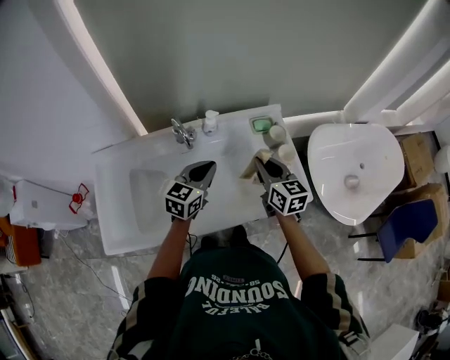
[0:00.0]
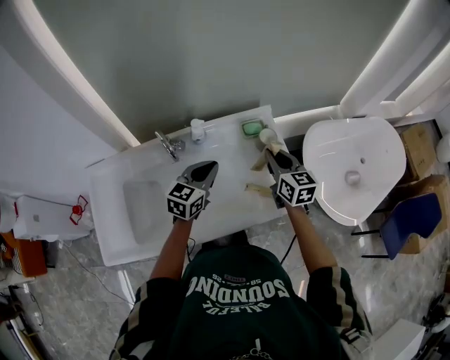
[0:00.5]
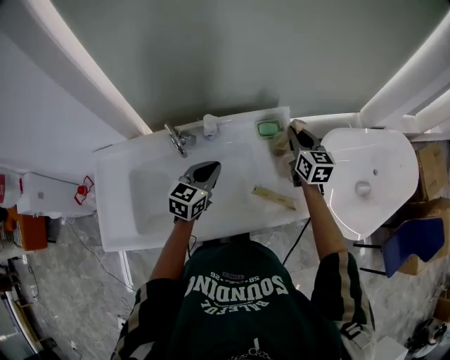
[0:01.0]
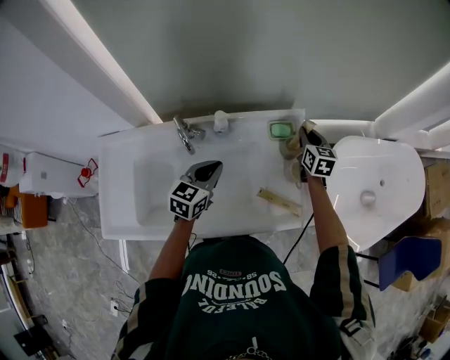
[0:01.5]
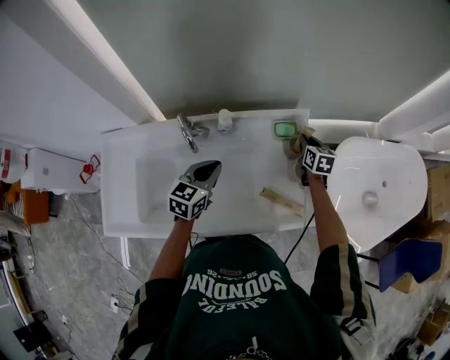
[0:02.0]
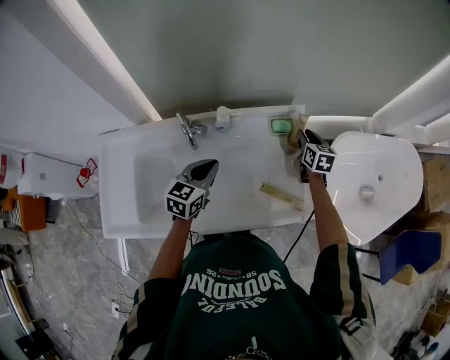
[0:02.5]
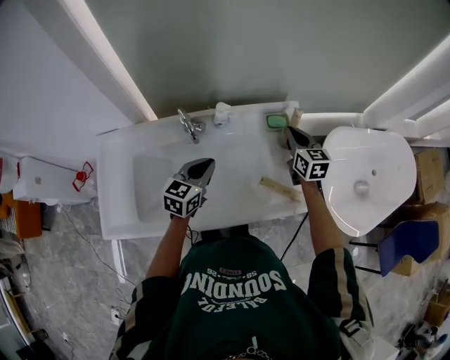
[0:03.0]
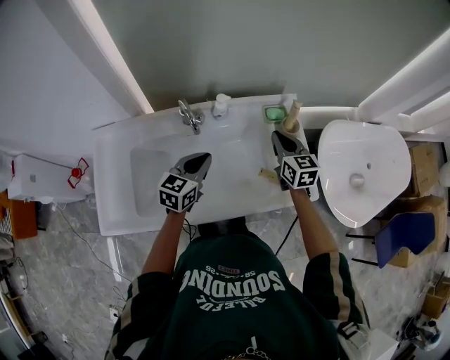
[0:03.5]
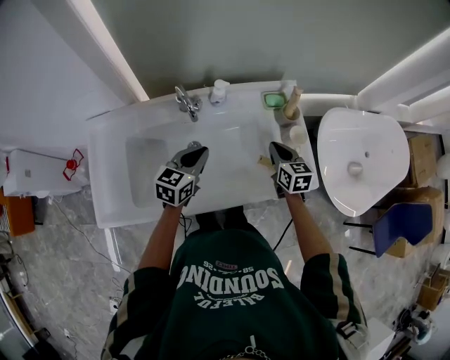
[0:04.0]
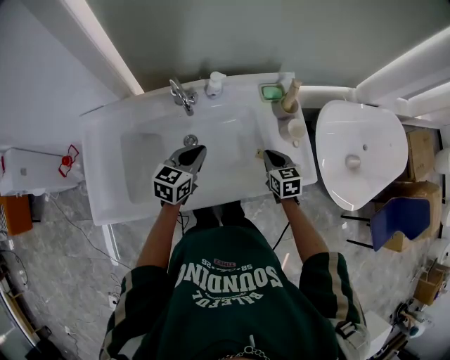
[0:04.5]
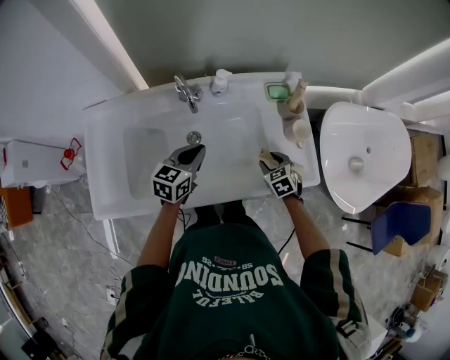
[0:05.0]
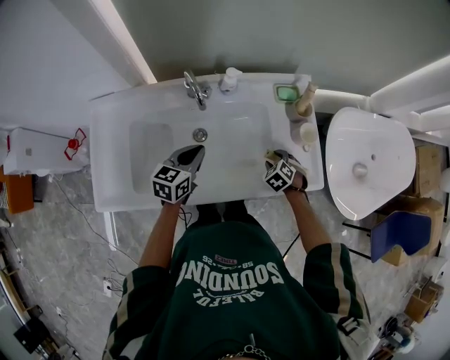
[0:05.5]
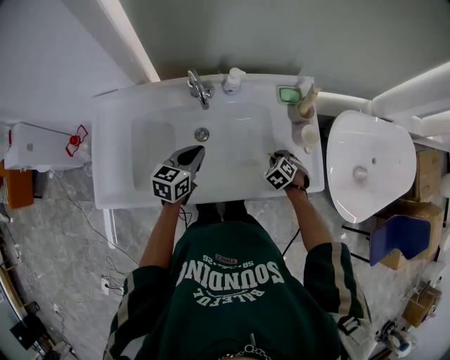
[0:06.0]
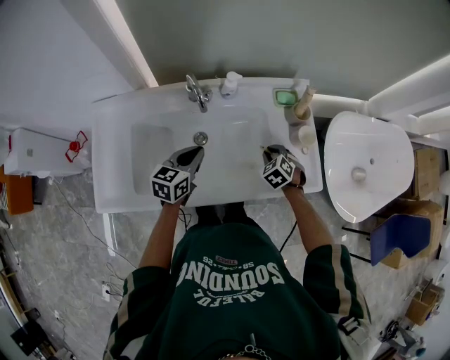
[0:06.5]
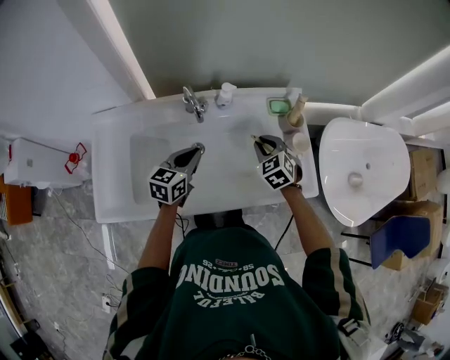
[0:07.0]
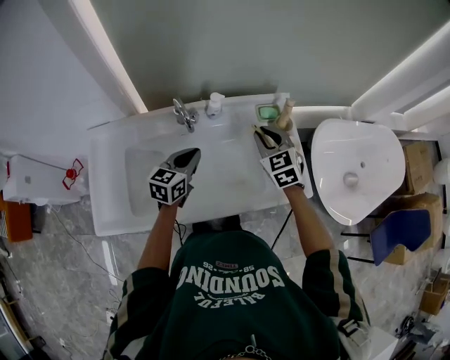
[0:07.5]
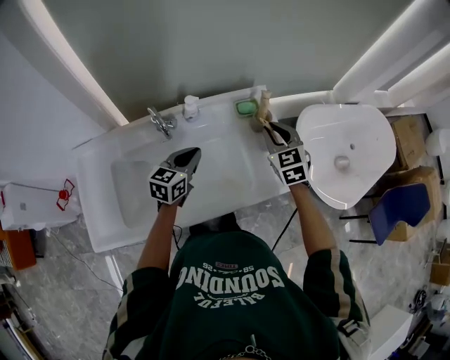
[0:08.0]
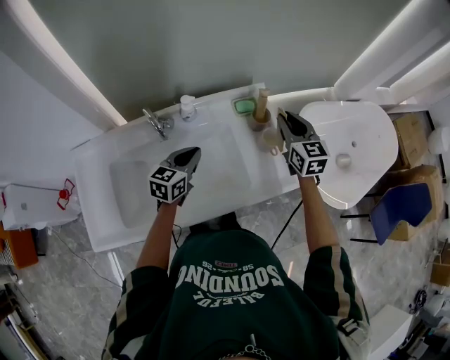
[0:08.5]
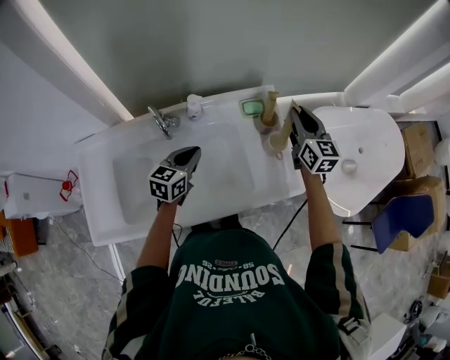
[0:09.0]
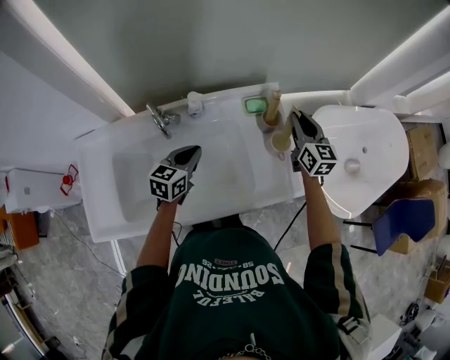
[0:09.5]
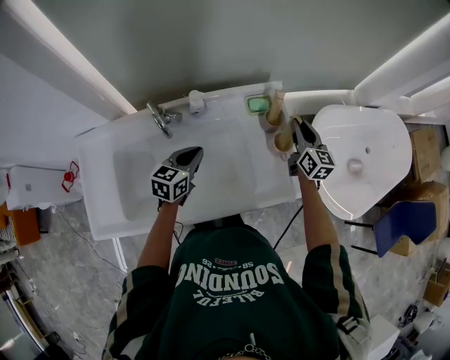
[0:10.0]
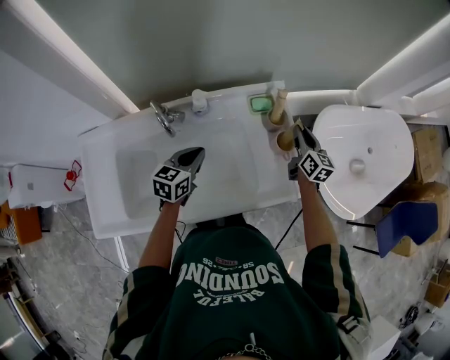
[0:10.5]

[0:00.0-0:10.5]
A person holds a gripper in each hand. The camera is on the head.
0.0 to 2.0 s: The right gripper travels forward, downward and to the right by approximately 30 cm, and turns by about 20 degrees. Meanwhile the left gripper travels forward by about 5 cm.
2.0 to 4.0 s: The left gripper is displaced backward by roughly 5 cm, while the right gripper shifts approximately 20 cm backward and to the left.
4.0 to 6.5 s: The left gripper changes place by about 5 cm. Meanwhile the right gripper is displaced downward by about 10 cm, twists about 40 degrees counterclockwise, seen from behind, and opens, then closes once more.
6.5 to 8.5 s: The left gripper travels to the right and forward by approximately 10 cm; the right gripper is displaced upward and to the right by roughly 30 cm, and tips its fingers upward by some 40 degrees.
8.5 to 10.5 s: The right gripper heads downward, covering roughly 15 cm, and changes its angle by about 30 degrees.

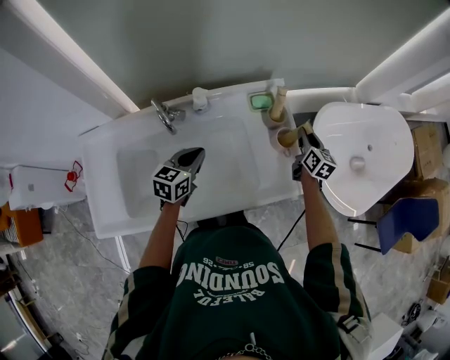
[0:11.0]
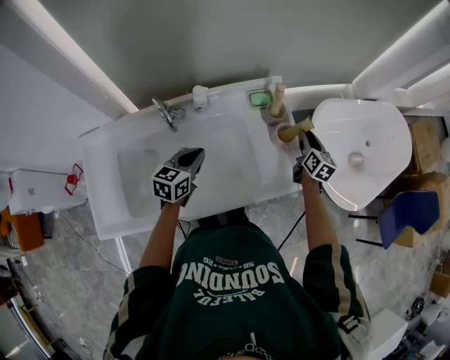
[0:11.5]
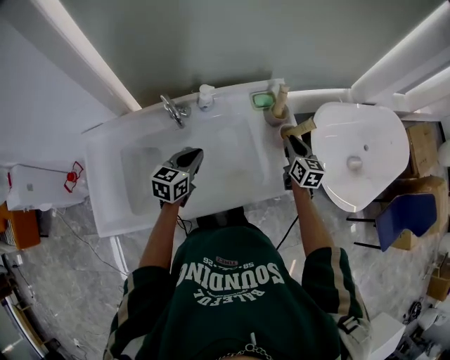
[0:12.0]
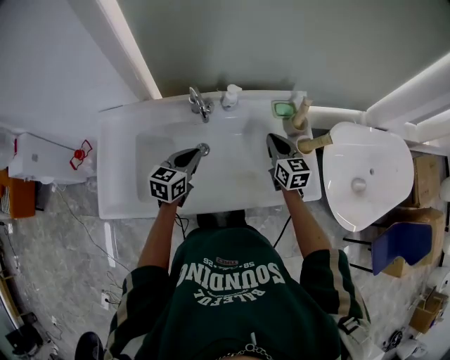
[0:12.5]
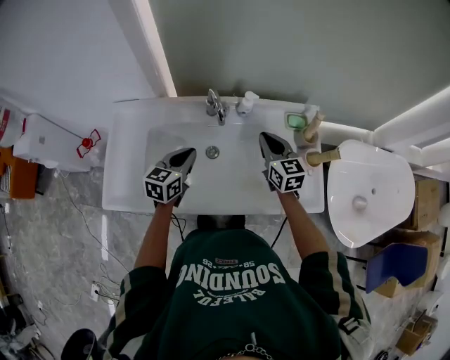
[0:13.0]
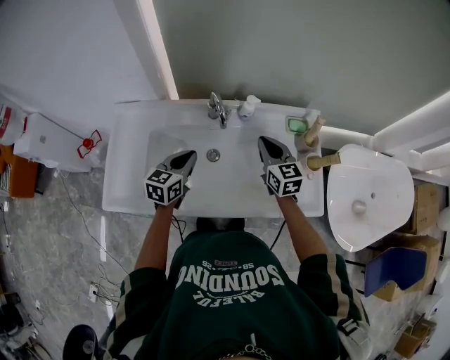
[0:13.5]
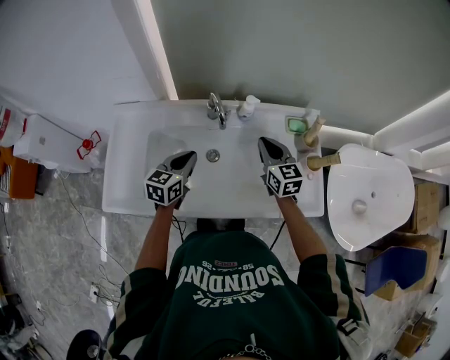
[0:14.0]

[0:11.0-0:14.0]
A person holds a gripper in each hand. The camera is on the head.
11.0 to 12.5 s: The left gripper shifts about 10 cm to the left and backward; the right gripper heads to the left and backward, covering some 25 cm, and rotates approximately 30 degrees.
12.5 to 14.0 s: The grippers both shift to the left by approximately 5 cm.

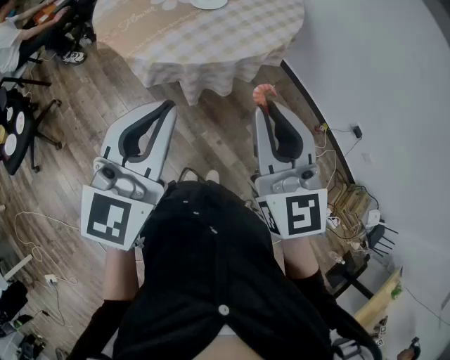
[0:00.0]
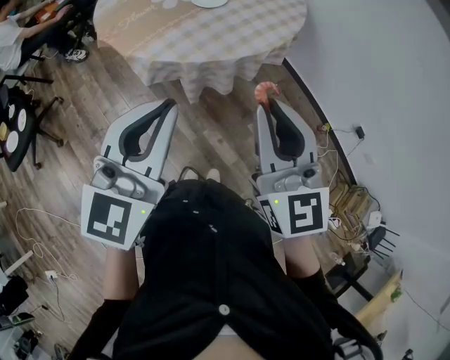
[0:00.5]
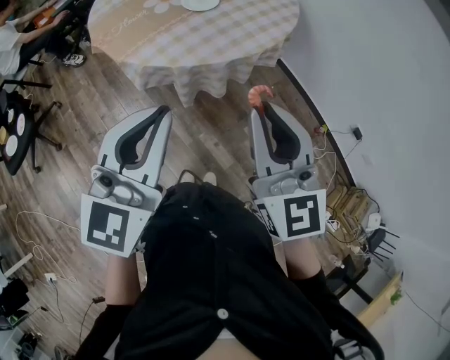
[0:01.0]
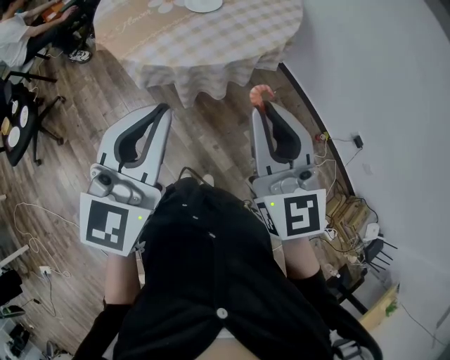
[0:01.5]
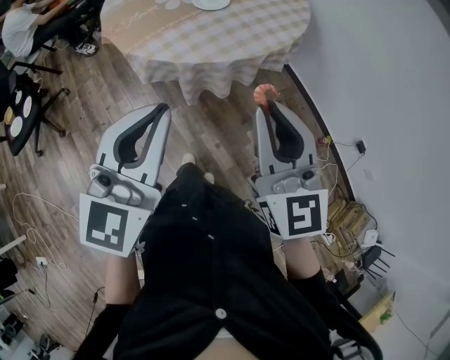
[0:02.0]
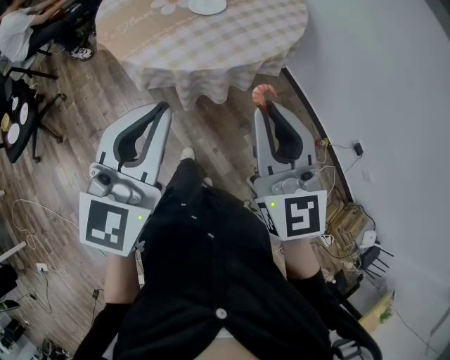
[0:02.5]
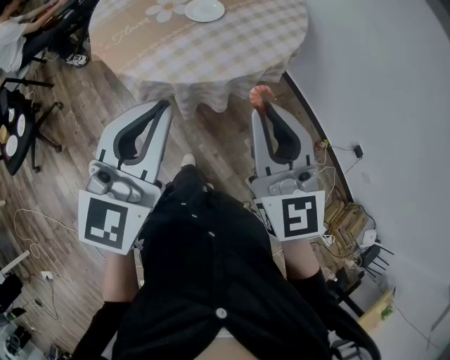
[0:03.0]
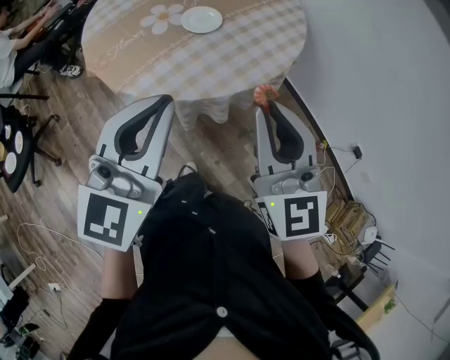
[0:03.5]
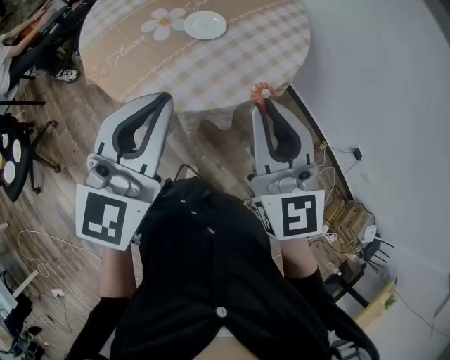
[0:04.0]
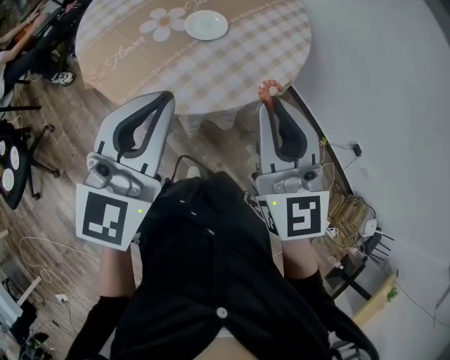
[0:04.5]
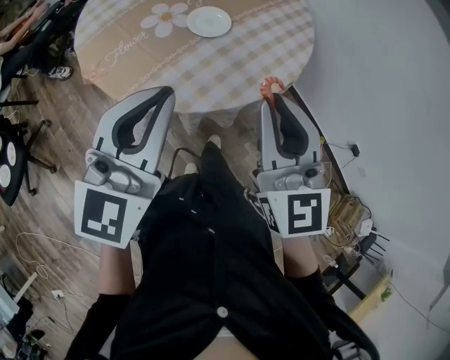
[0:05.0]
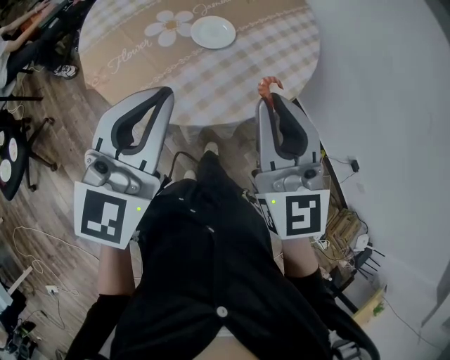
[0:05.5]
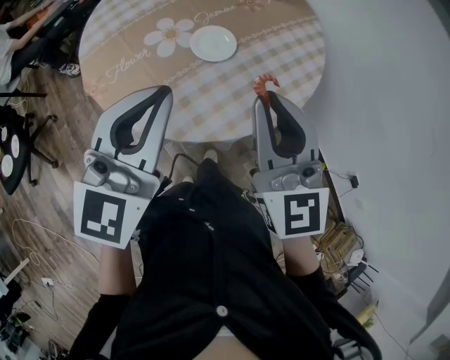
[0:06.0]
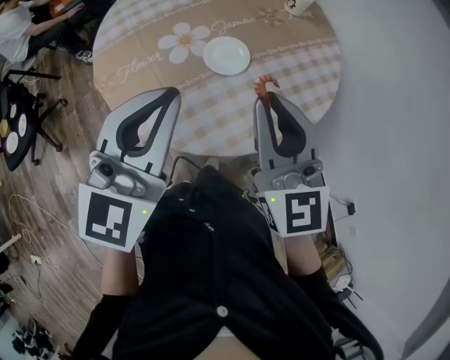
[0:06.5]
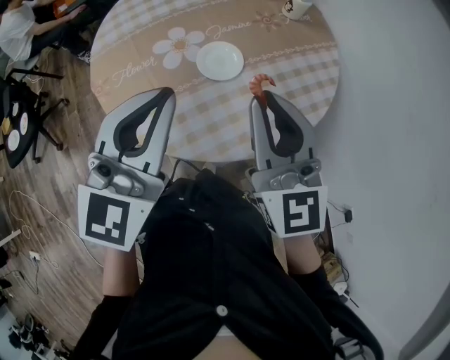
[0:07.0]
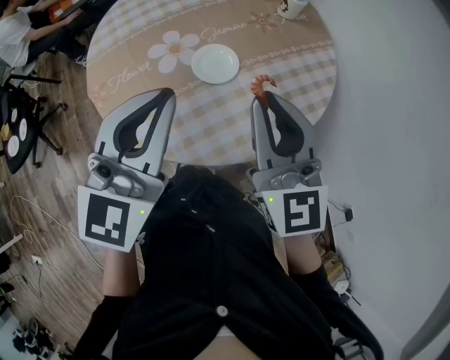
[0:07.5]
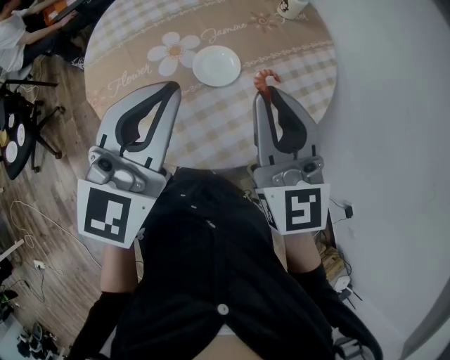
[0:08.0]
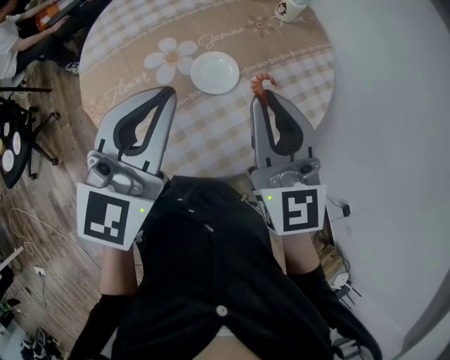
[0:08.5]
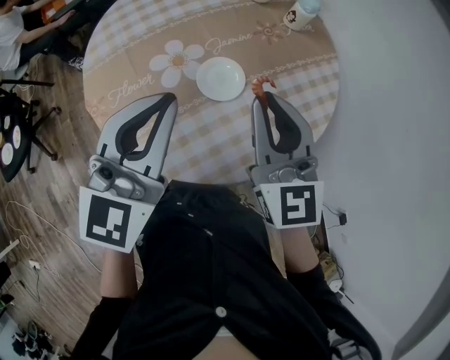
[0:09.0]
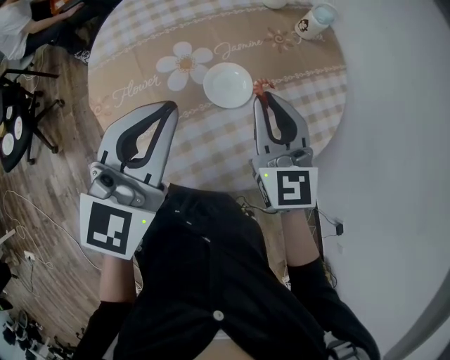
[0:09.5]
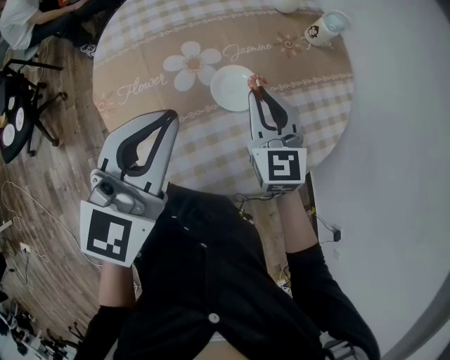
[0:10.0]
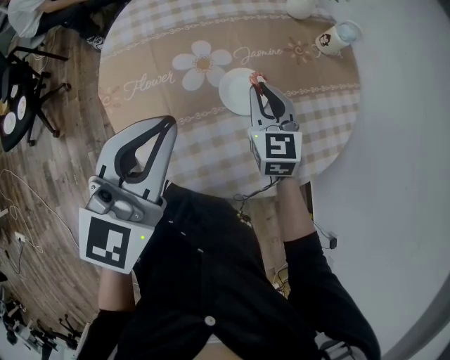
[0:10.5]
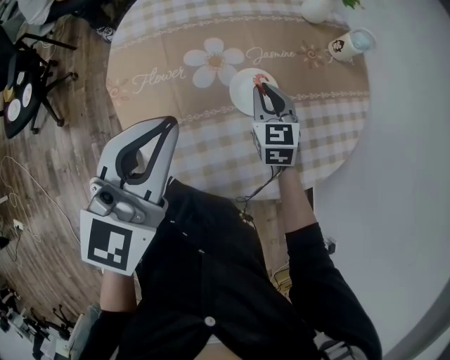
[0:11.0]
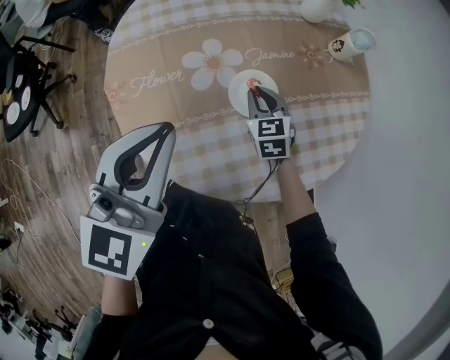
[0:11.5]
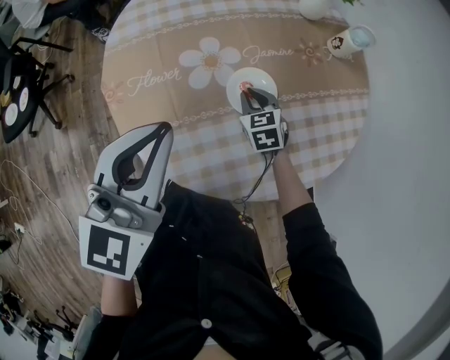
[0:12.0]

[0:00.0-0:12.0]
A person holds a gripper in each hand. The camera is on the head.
0.0 to 2.0 s: Both grippers travel together to the right, approximately 5 cm.
2.0 to 4.0 s: The left gripper moves forward, approximately 20 cm; the right gripper moves forward and to the left, some 20 cm.
4.0 to 6.0 s: The grippers both shift forward by roughly 10 cm.
6.0 to 8.0 s: The two grippers go roughly 10 cm forward.
8.0 to 10.0 s: The left gripper moves to the left, about 5 cm. Meanwhile the right gripper moves downward and forward, roughly 20 cm.
10.0 to 12.0 s: The right gripper heads downward, covering some 20 cm, and rotates some 30 degrees.

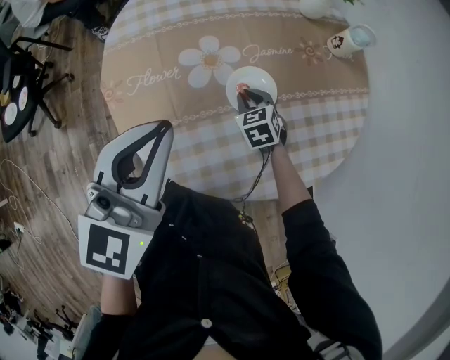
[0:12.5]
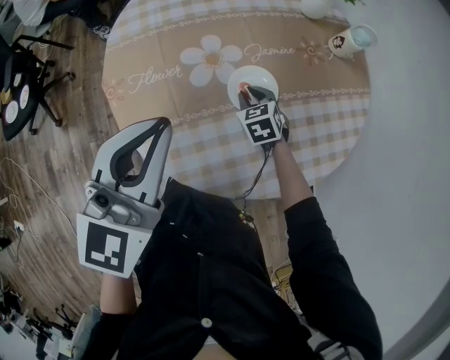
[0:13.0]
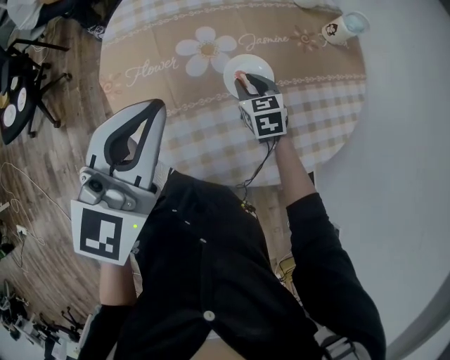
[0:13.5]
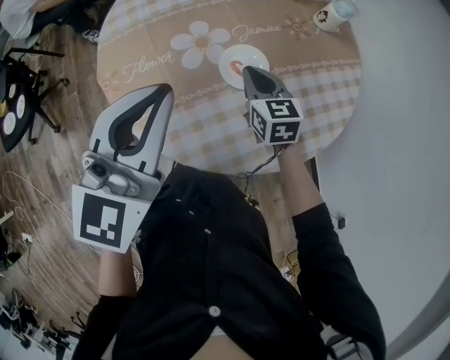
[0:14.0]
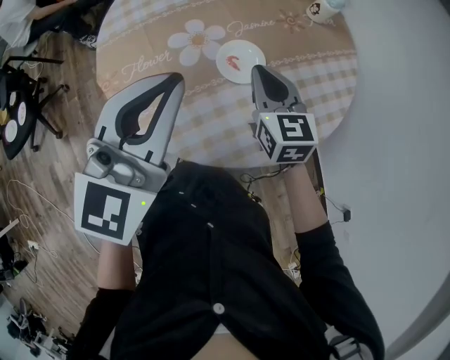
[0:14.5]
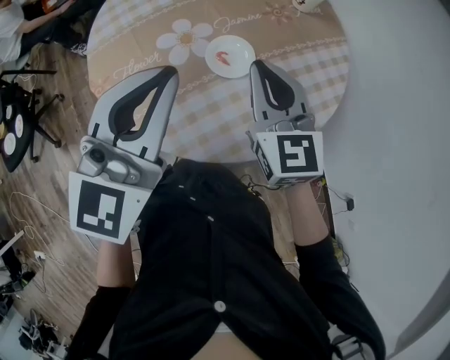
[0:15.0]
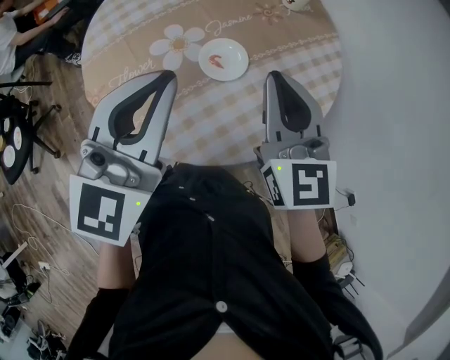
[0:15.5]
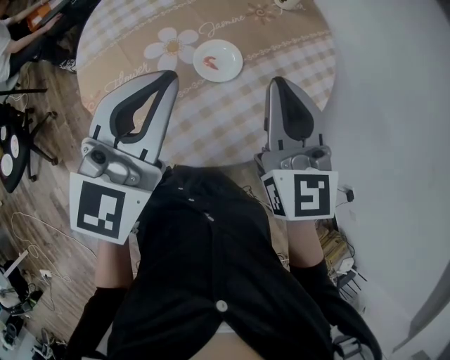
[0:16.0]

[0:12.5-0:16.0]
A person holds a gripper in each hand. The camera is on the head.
12.5 to 14.5 s: The left gripper ends up roughly 5 cm from where it was. Meanwhile the right gripper travels upward by approximately 20 cm, and turns by about 40 degrees.
14.5 to 16.0 s: The right gripper moves upward and backward, about 15 cm, and turns by approximately 20 degrees.
